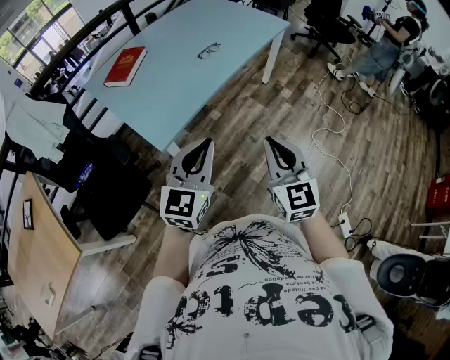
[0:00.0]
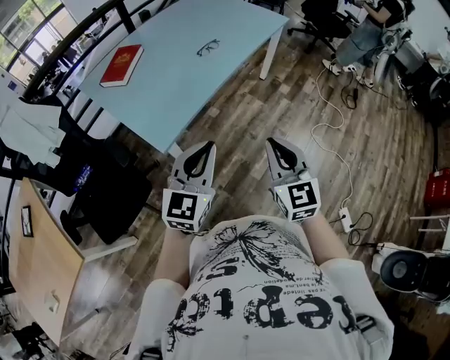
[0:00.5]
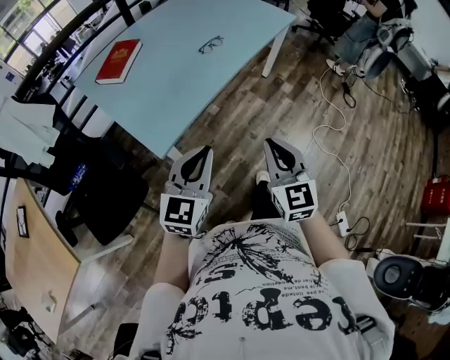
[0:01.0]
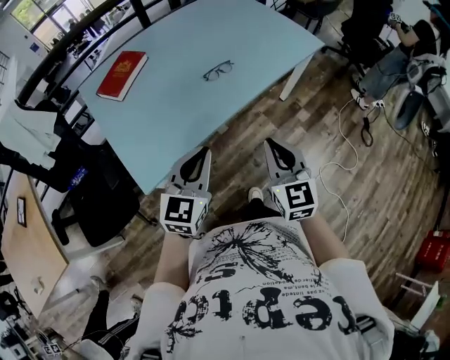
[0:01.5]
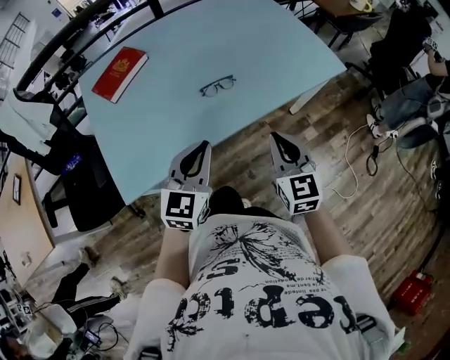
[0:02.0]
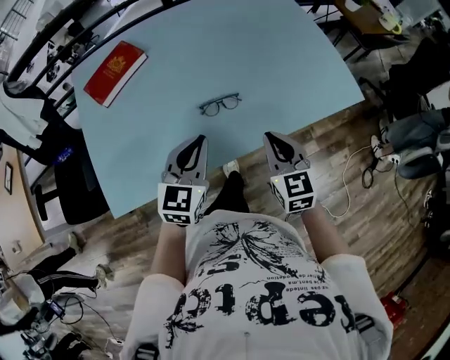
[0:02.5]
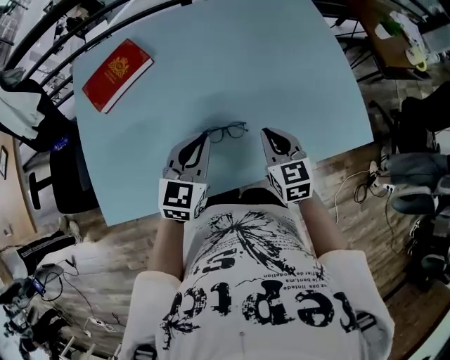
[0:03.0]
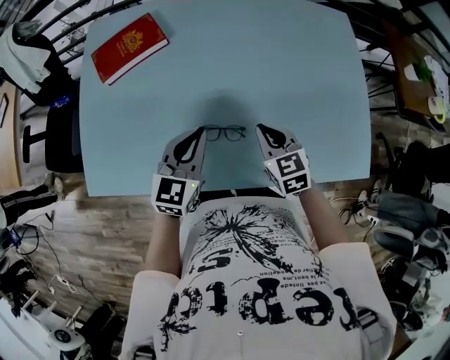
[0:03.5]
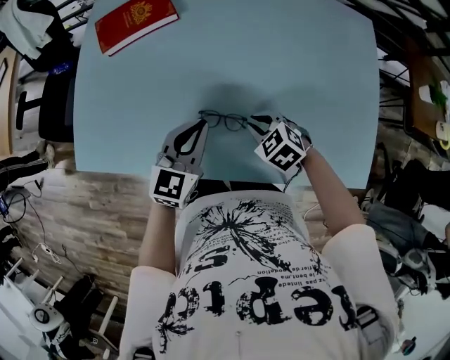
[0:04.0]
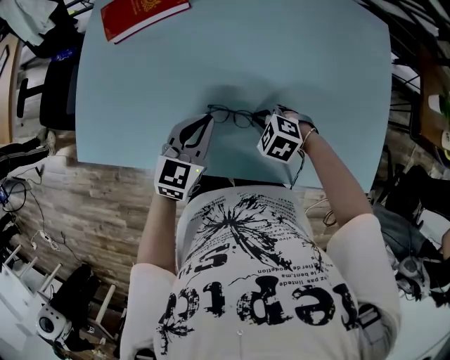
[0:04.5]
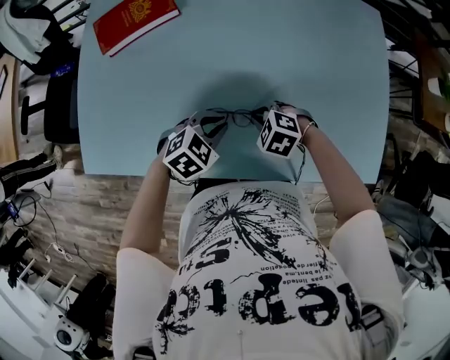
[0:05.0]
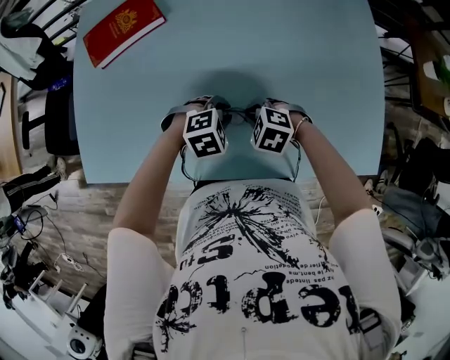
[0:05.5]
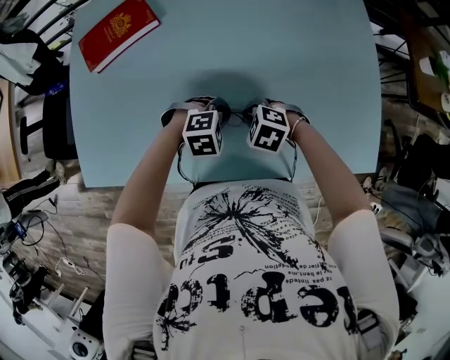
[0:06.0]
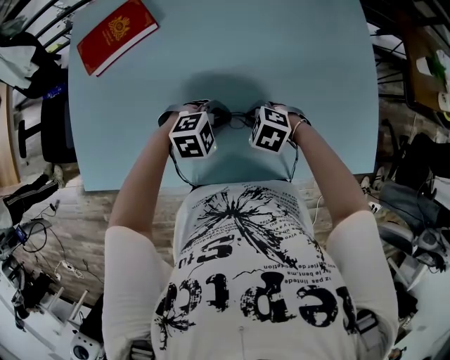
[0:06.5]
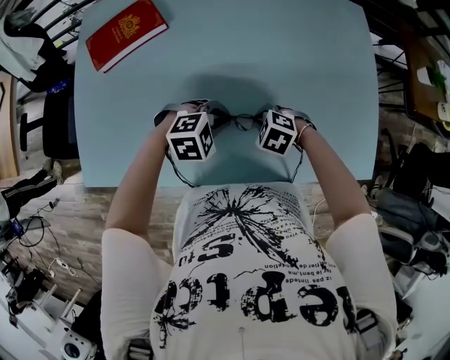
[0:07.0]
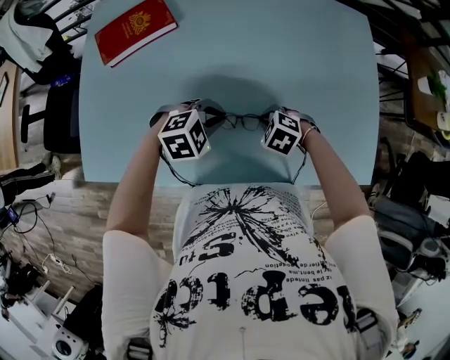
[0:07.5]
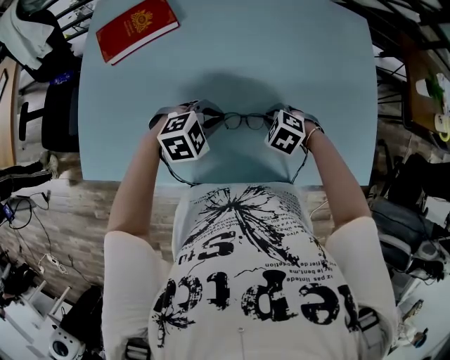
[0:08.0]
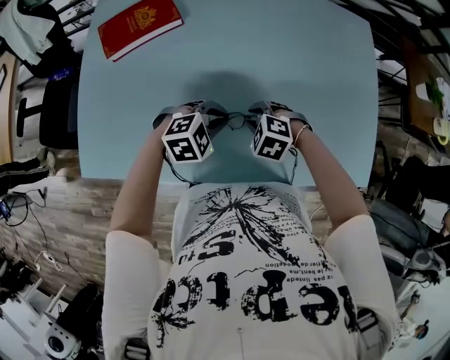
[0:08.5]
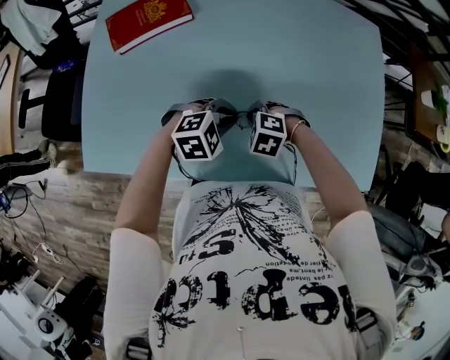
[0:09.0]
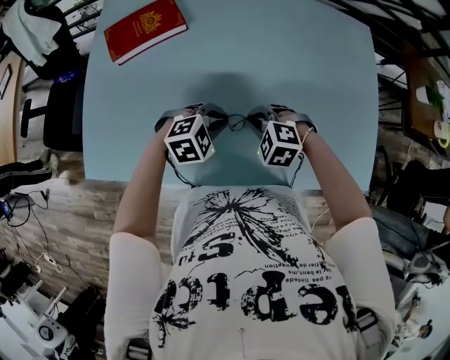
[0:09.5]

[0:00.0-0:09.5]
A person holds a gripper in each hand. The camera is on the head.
0:00.0 to 0:02.0: Both grippers are carried forward, approximately 40 cm. The left gripper swivels roughly 20 degrees; the right gripper rotates roughly 20 degrees.
0:02.0 to 0:04.0: The left gripper ends up some 30 cm from where it was, and rotates about 30 degrees. The right gripper changes place by approximately 40 cm, and tilts its fingers some 40 degrees downward.
0:04.0 to 0:05.5: The left gripper goes approximately 15 cm downward, and tilts its fingers about 50 degrees downward.
0:05.5 to 0:07.5: The left gripper moves upward, roughly 5 cm.
0:07.5 to 0:09.5: The right gripper shifts by some 10 cm, and changes its angle by some 20 degrees.

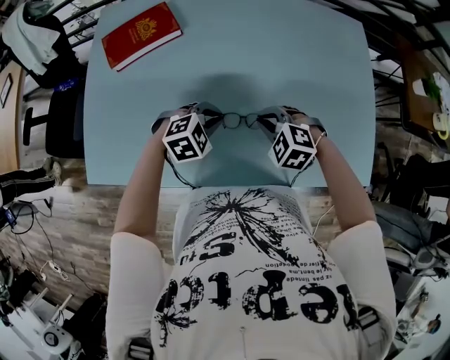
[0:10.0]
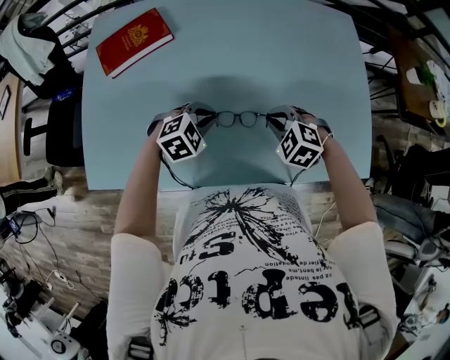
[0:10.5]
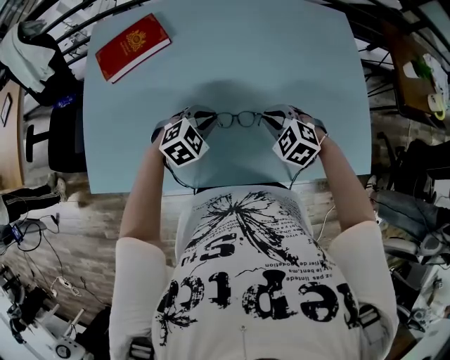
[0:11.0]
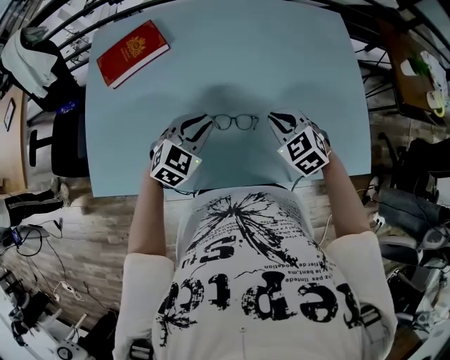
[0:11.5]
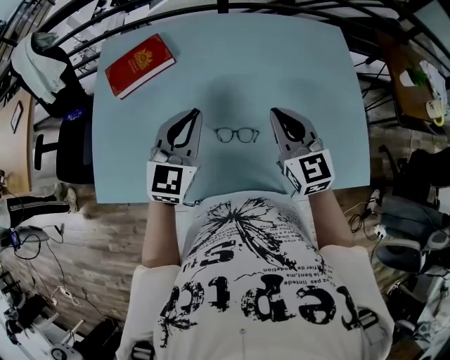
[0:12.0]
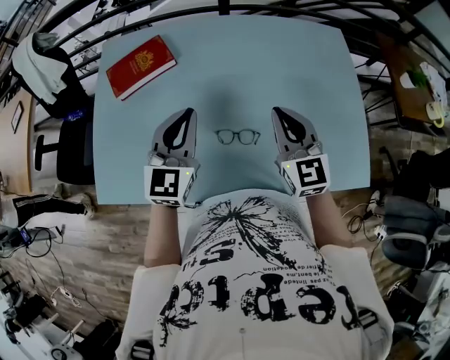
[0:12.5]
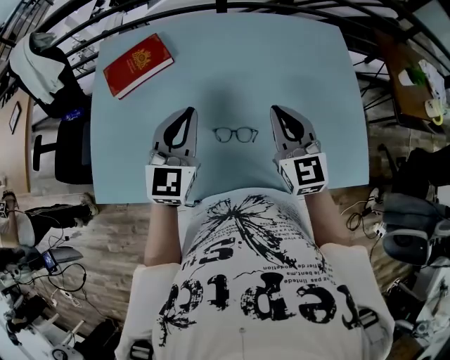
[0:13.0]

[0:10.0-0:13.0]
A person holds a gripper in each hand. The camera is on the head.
0:10.0 to 0:11.5: The left gripper shifts roughly 5 cm upward, and swivels some 30 degrees; the right gripper heads to the right, covering some 5 cm, and turns by approximately 30 degrees.
0:11.5 to 0:13.0: Both grippers travel together upward, roughly 15 cm. The right gripper angles its fingers upward, by some 40 degrees, while the left gripper rotates roughly 40 degrees.

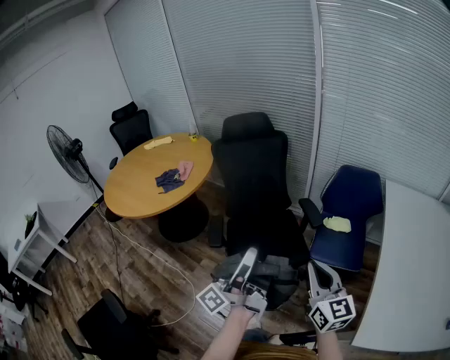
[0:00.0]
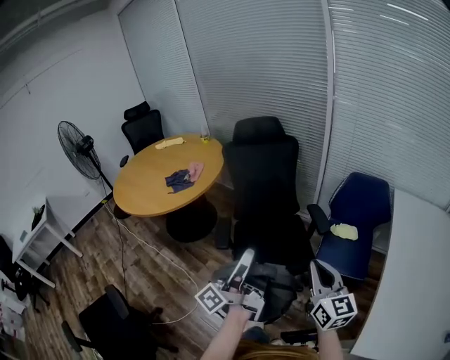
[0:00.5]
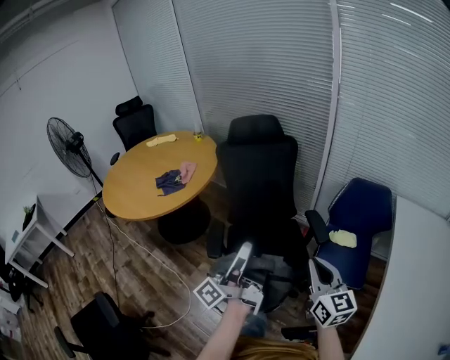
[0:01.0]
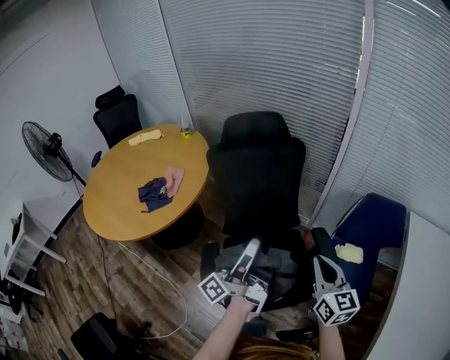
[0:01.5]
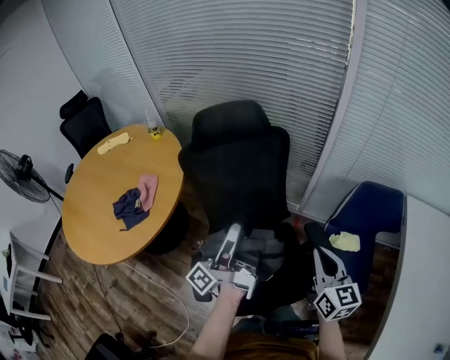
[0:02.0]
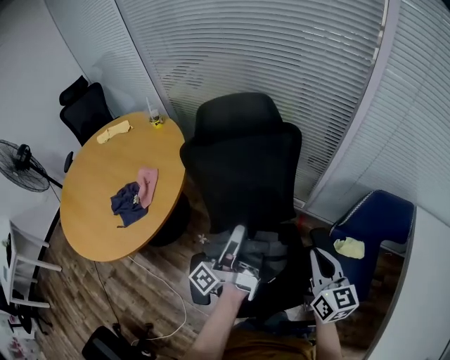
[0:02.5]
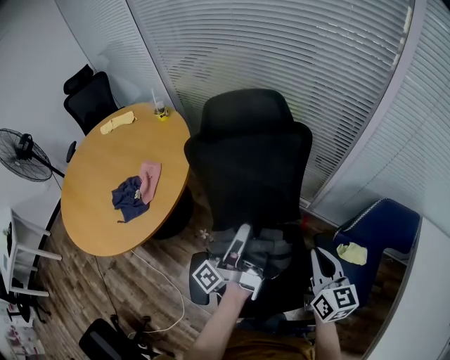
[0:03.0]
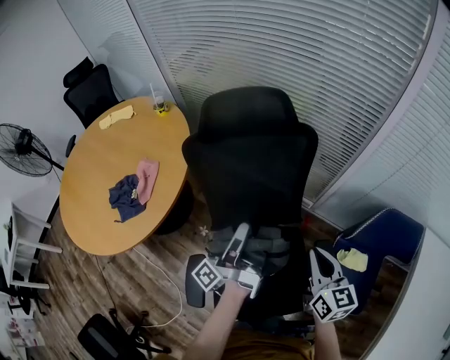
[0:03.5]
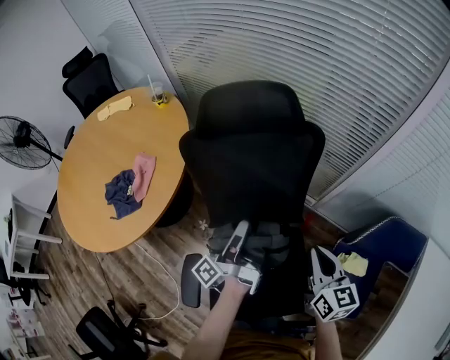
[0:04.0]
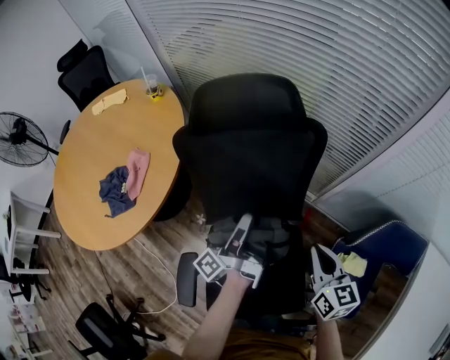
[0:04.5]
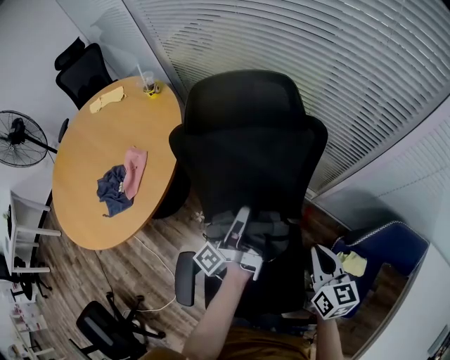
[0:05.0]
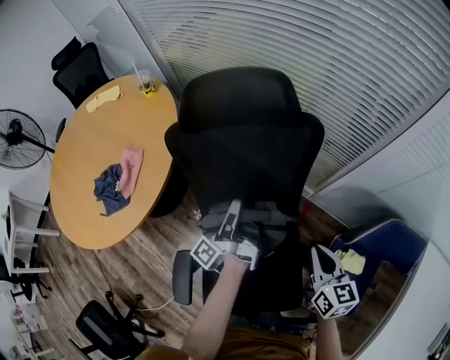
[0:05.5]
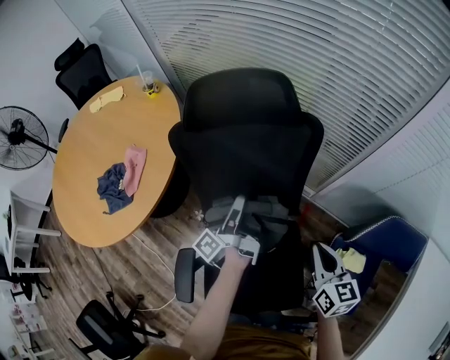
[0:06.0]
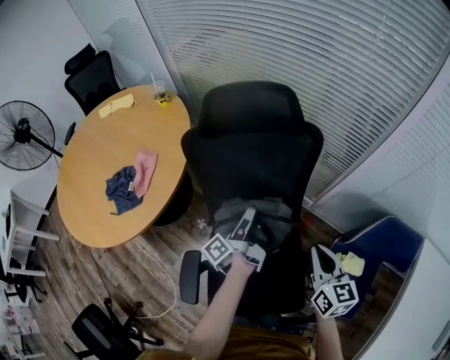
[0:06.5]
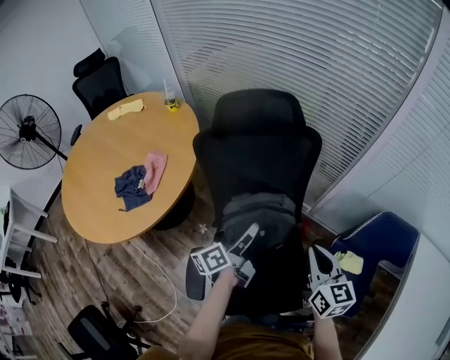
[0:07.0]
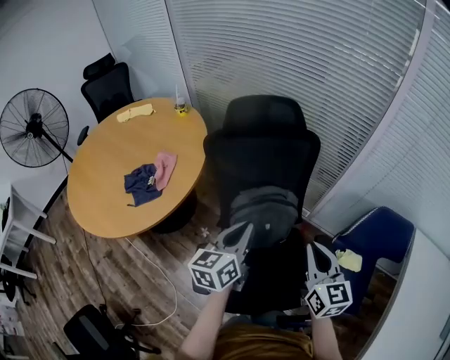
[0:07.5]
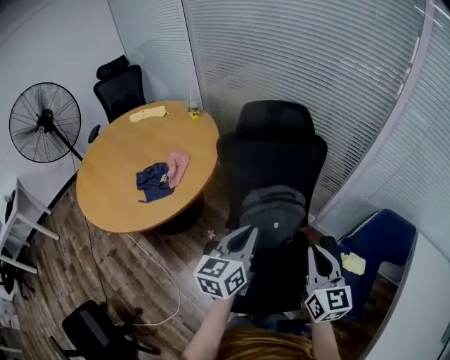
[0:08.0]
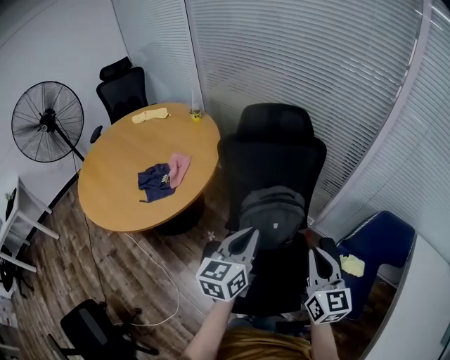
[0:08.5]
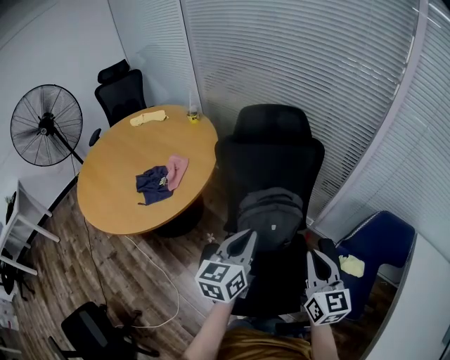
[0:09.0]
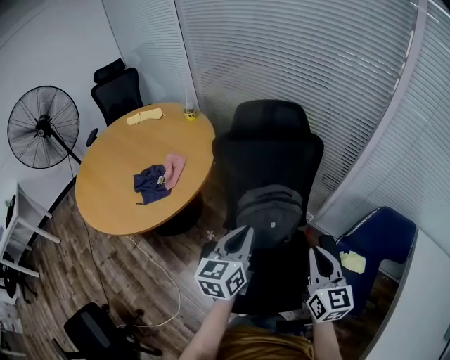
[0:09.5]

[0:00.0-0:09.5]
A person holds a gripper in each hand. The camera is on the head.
0:00.0 to 0:02.0: The right gripper shifts by some 40 cm.
0:02.0 to 0:04.0: The right gripper shifts by some 20 cm.
0:04.0 to 0:05.5: The right gripper moves about 5 cm.
0:05.5 to 0:07.5: The right gripper shifts by roughly 20 cm.

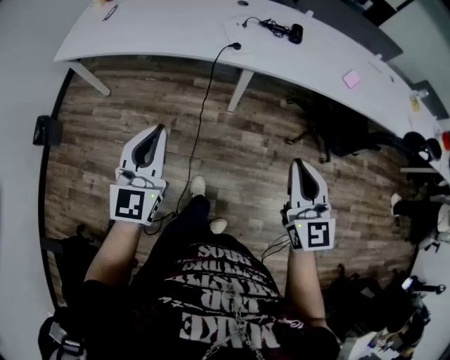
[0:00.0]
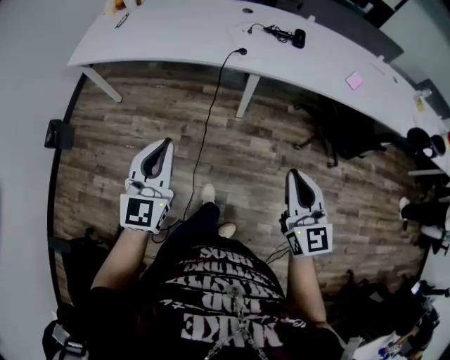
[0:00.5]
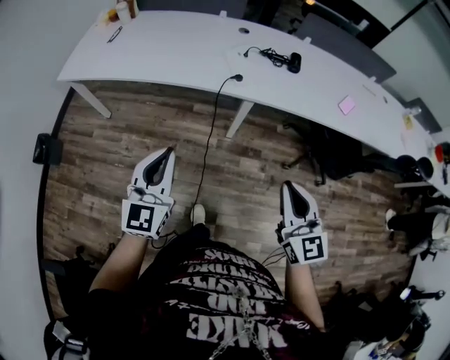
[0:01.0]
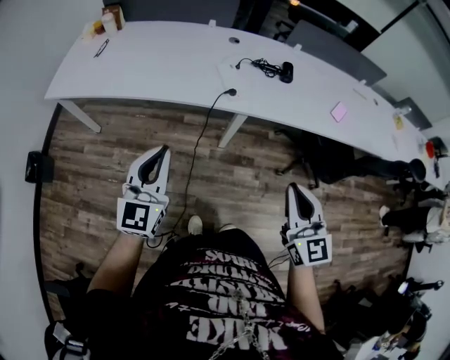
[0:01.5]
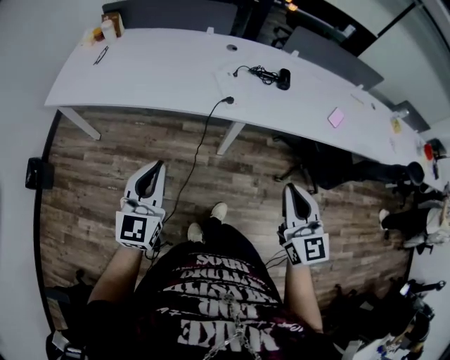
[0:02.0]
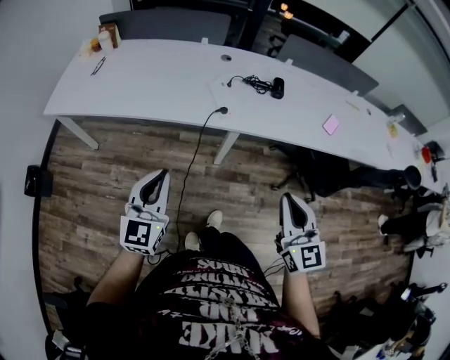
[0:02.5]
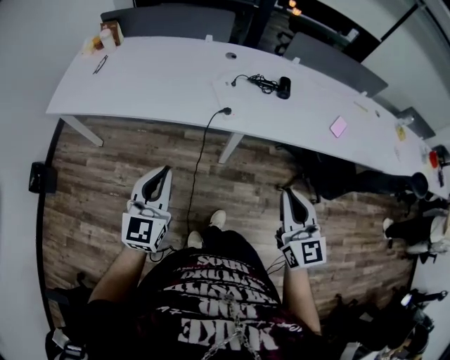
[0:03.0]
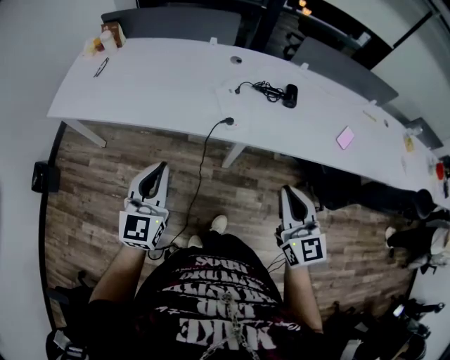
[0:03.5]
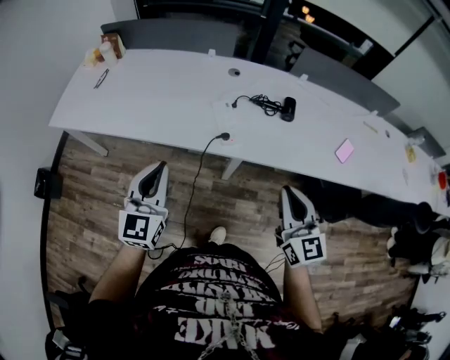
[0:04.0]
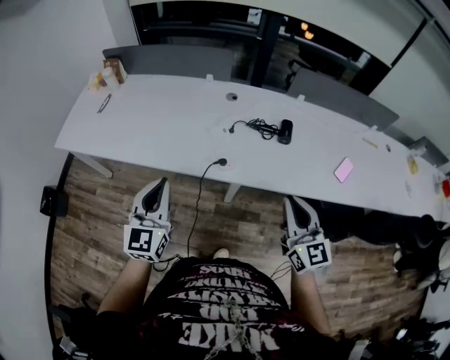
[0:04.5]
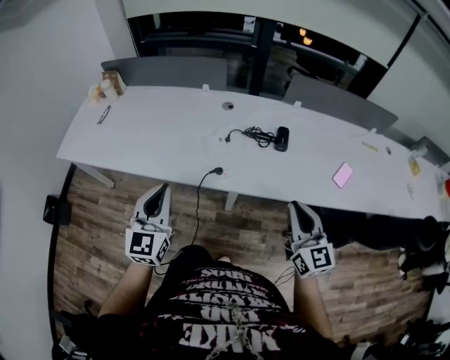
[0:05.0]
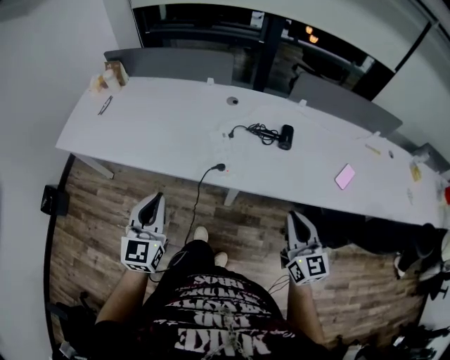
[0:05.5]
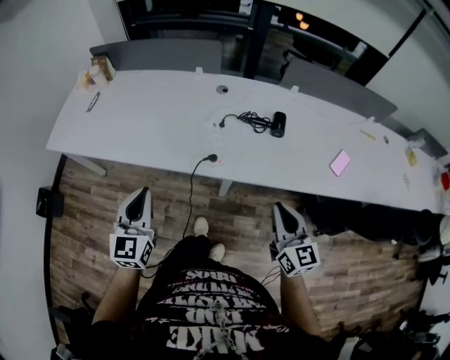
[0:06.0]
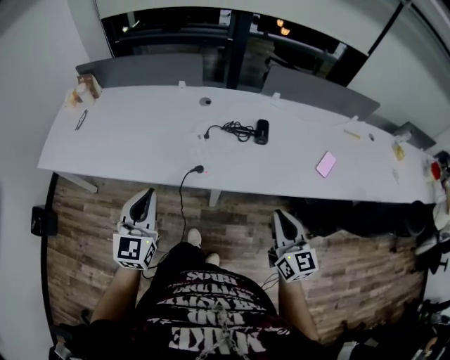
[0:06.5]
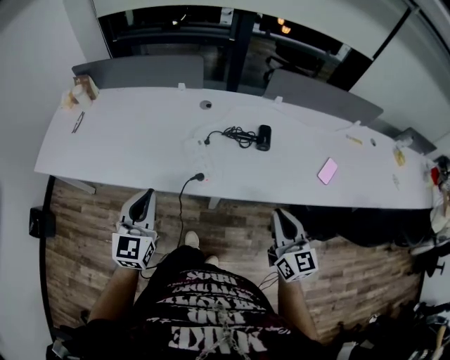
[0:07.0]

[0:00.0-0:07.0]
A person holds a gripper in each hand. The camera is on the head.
0:00.0 to 0:02.0: Both grippers travel together forward, approximately 10 cm.
0:02.0 to 0:03.5: The two grippers go about 10 cm forward.
0:03.5 to 0:05.0: The right gripper is displaced to the right and forward by some 15 cm. Meanwhile the left gripper moves forward and to the right, roughly 10 cm.
0:05.0 to 0:07.0: The left gripper changes place by some 5 cm.
